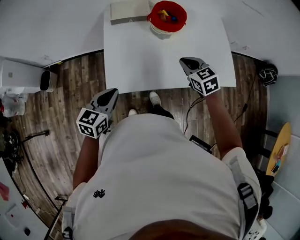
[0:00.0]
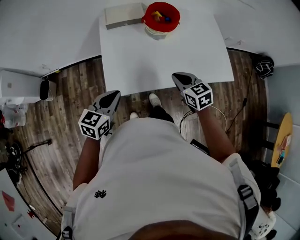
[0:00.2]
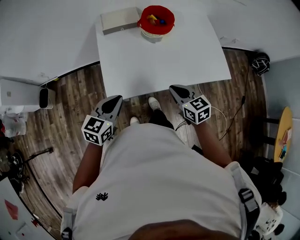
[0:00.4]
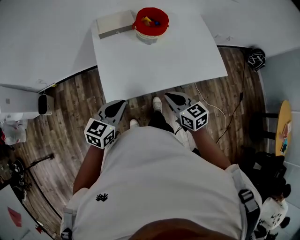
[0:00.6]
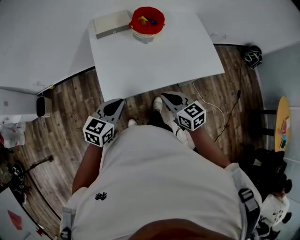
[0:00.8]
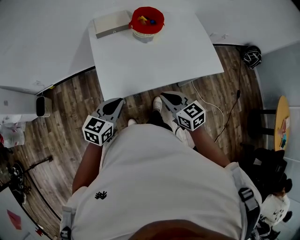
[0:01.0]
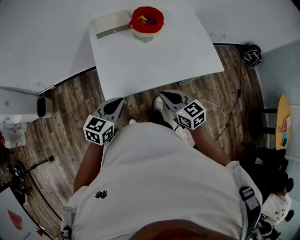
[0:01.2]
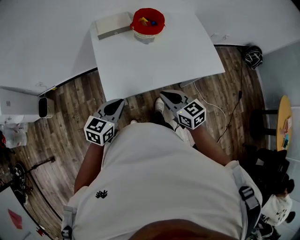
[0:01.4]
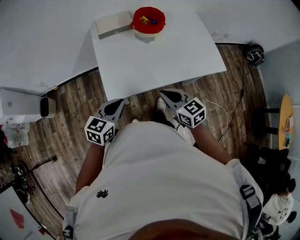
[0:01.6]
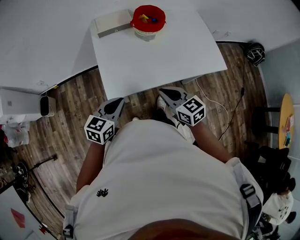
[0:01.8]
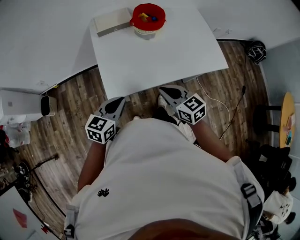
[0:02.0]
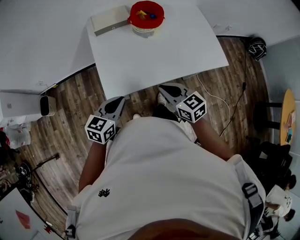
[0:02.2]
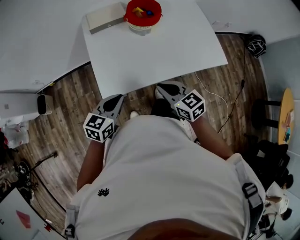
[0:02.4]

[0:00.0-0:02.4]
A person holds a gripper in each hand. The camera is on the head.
0:00.0 to 0:01.2: The right gripper travels backward by some 20 cm, and rotates some 20 degrees.
0:01.2 to 0:02.4: There are only small adjustments of the grippers.

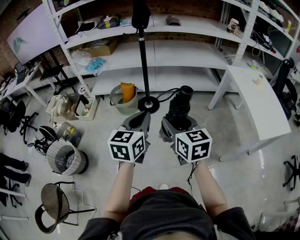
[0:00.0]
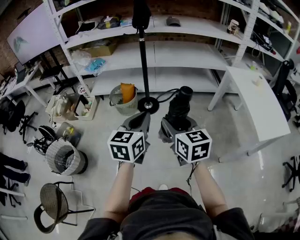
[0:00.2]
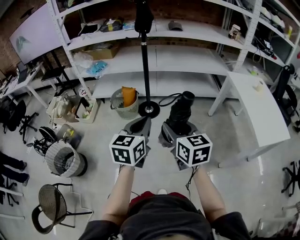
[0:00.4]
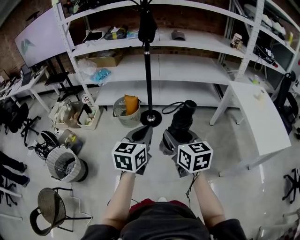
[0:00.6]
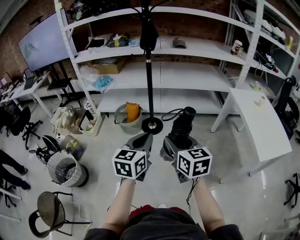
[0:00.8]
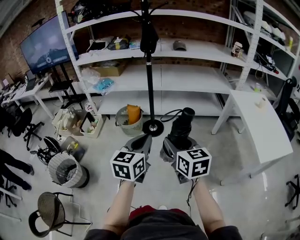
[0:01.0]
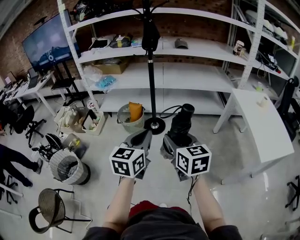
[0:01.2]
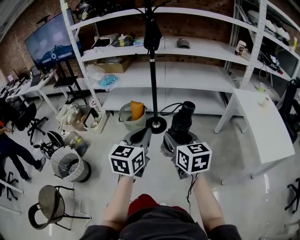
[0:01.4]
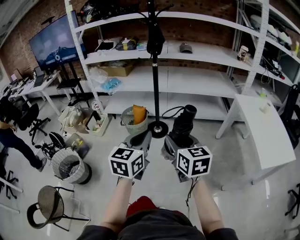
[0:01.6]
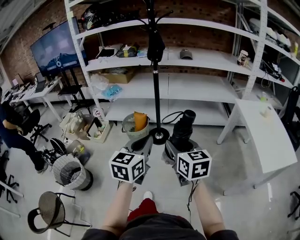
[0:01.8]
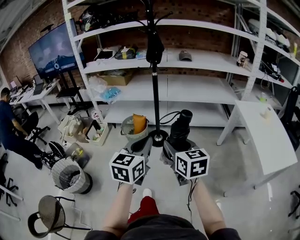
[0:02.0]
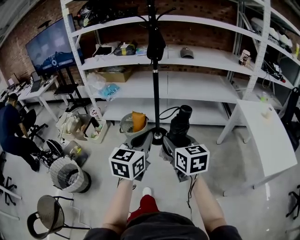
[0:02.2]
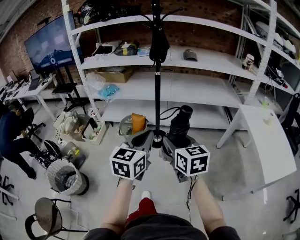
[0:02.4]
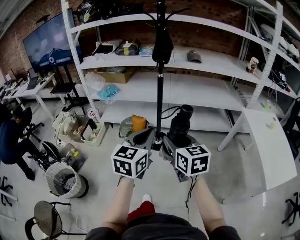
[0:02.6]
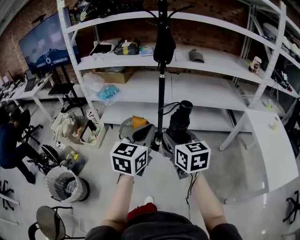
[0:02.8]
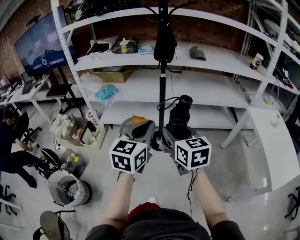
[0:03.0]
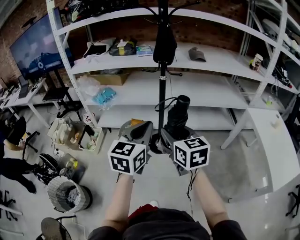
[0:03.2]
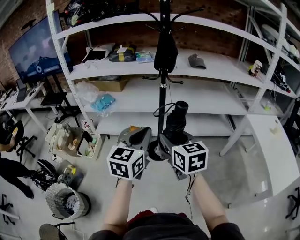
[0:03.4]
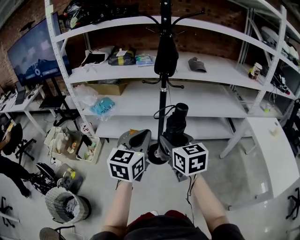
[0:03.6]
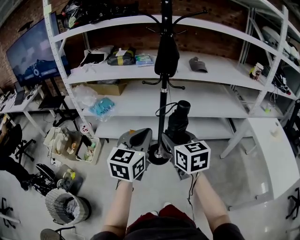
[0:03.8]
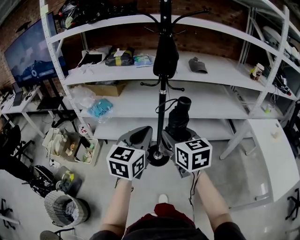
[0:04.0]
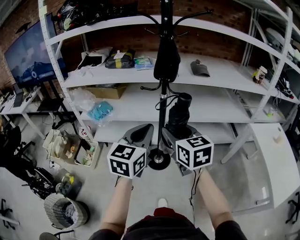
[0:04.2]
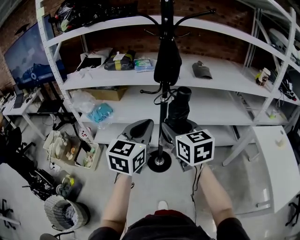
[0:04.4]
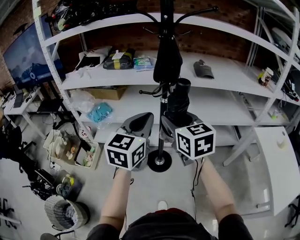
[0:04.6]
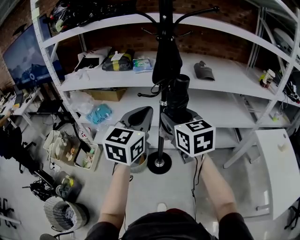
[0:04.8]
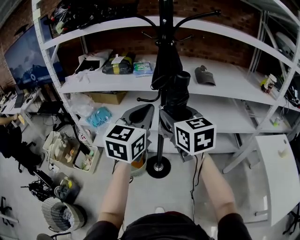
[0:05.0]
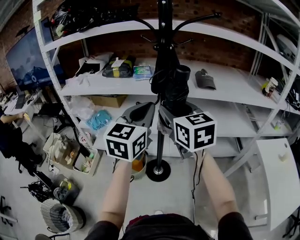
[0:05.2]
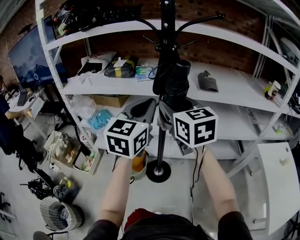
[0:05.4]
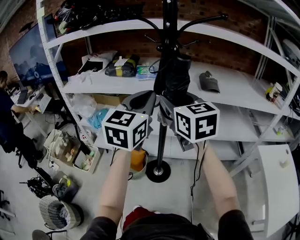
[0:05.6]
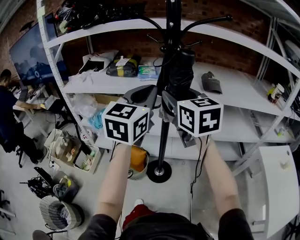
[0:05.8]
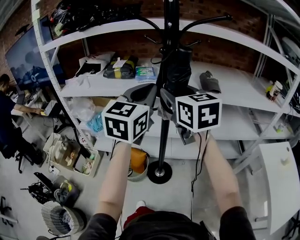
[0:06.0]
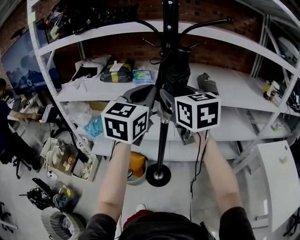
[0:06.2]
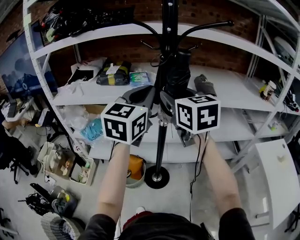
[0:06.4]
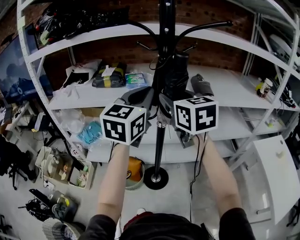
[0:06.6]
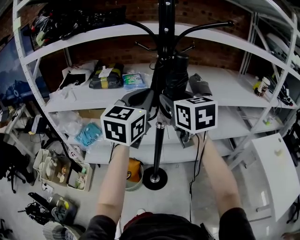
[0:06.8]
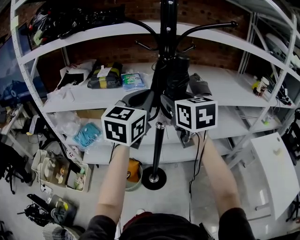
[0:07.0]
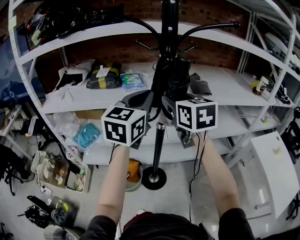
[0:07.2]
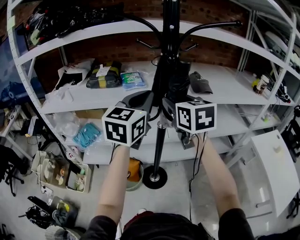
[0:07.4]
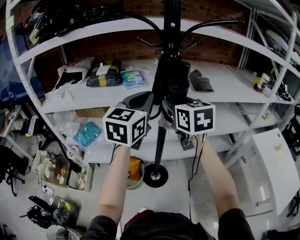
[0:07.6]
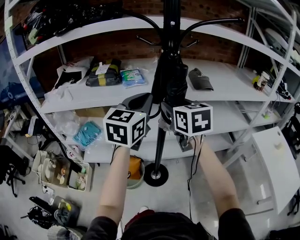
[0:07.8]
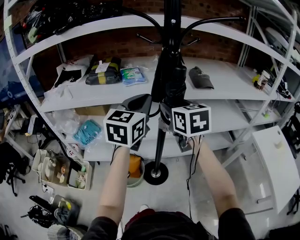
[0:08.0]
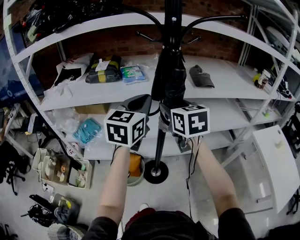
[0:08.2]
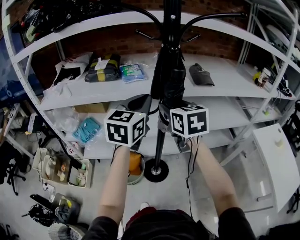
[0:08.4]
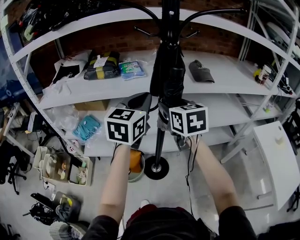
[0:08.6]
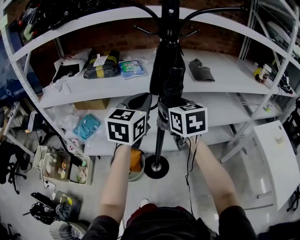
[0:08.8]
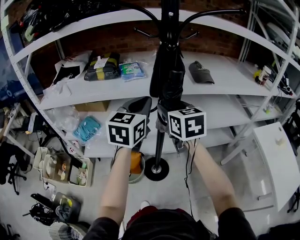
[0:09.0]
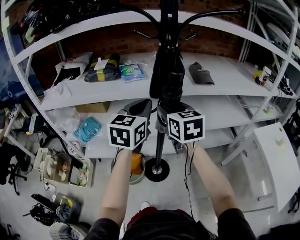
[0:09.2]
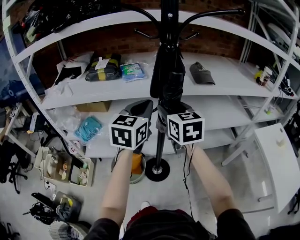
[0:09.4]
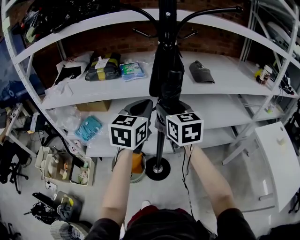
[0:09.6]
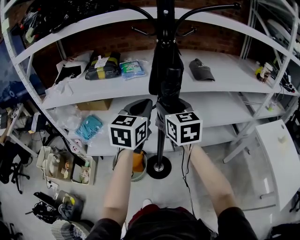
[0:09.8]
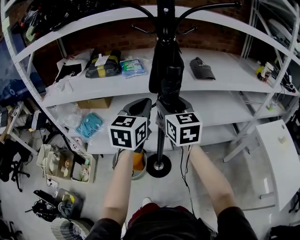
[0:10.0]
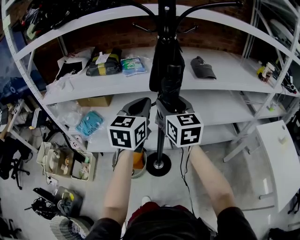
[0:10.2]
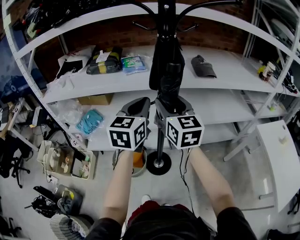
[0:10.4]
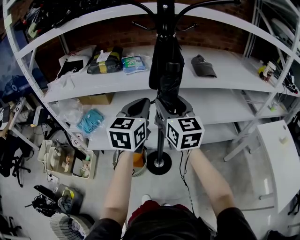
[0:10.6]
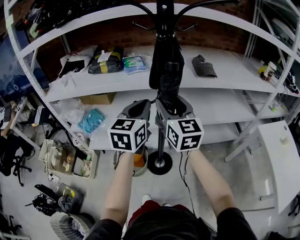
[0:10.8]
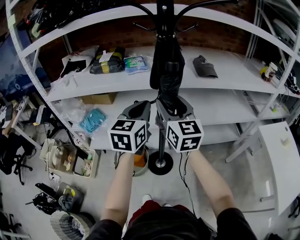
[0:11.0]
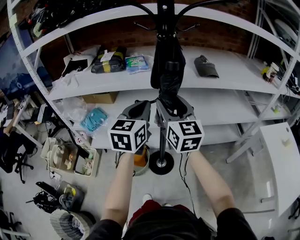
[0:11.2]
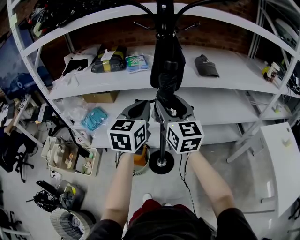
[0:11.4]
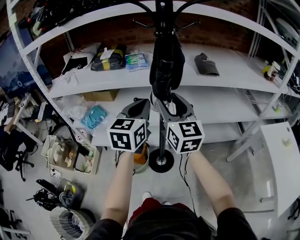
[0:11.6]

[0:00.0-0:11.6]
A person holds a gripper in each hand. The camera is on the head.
0:00.0 to 0:01.4: The grippers stay close to where they were, moving slightly.
0:01.4 to 0:02.8: The grippers both shift forward by about 25 cm.
0:02.8 to 0:04.4: Both grippers travel together forward, some 25 cm.
0:04.4 to 0:05.8: Both grippers travel together forward and upward, some 20 cm.
0:05.8 to 0:07.2: The two grippers go roughly 10 cm forward.
0:07.2 to 0:08.8: Both grippers move downward, roughly 10 cm.
0:08.8 to 0:10.2: There are only small adjustments of the grippers.
0:10.2 to 0:11.6: The grippers stay close to where they were, moving slightly.

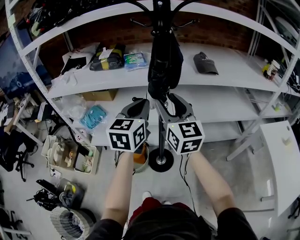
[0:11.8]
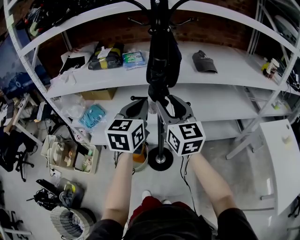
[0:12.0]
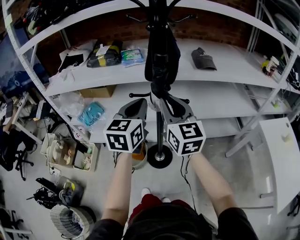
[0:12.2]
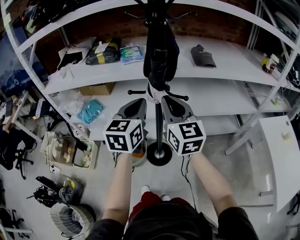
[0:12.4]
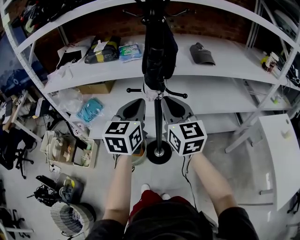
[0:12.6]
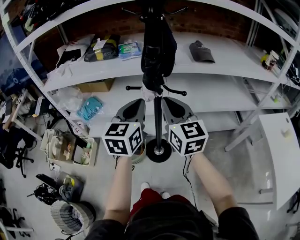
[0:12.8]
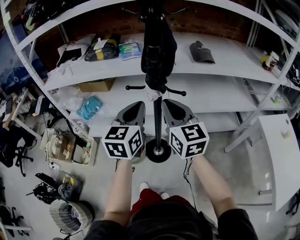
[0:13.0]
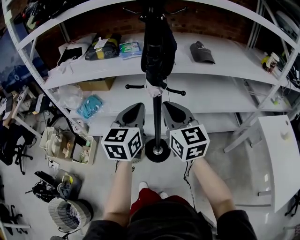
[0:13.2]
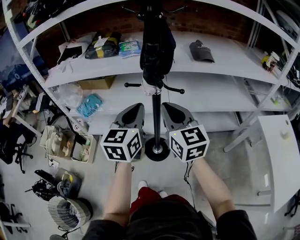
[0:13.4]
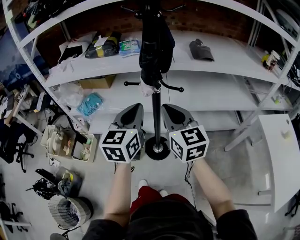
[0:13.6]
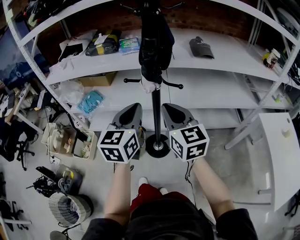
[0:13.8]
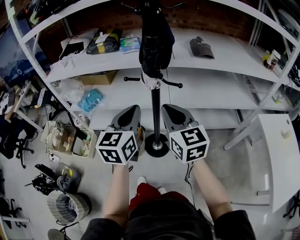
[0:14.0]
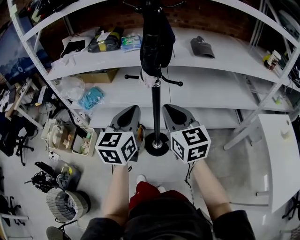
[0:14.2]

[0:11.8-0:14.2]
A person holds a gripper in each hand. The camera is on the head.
0:11.8 to 0:13.0: The right gripper moves roughly 5 cm, and closes. Meanwhile the left gripper moves about 5 cm.
0:13.0 to 0:14.2: Both grippers travel together backward, about 5 cm.

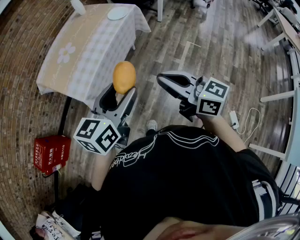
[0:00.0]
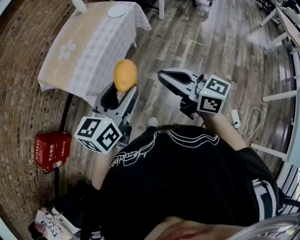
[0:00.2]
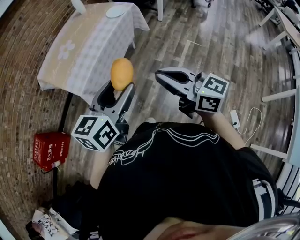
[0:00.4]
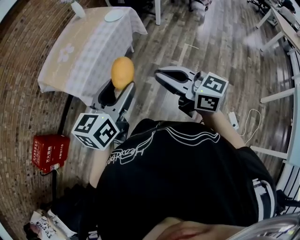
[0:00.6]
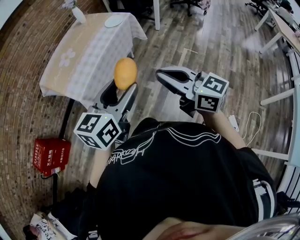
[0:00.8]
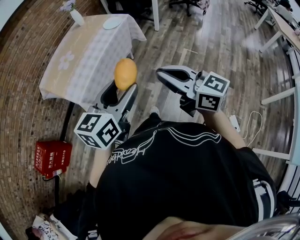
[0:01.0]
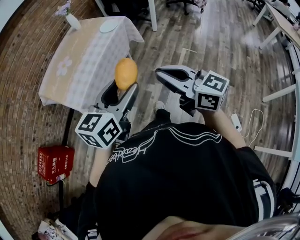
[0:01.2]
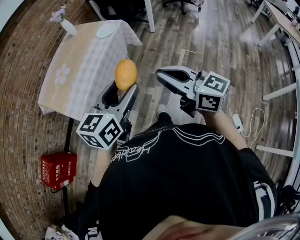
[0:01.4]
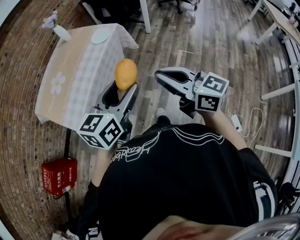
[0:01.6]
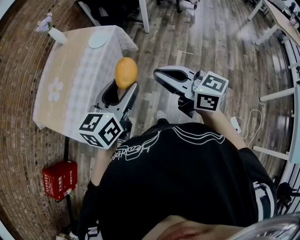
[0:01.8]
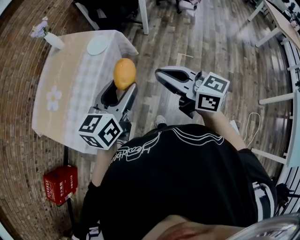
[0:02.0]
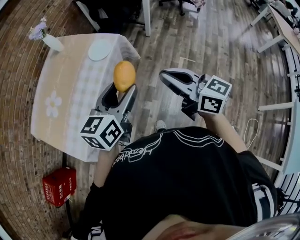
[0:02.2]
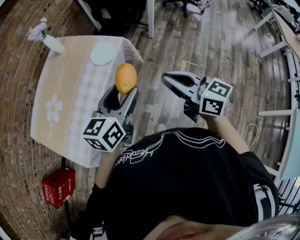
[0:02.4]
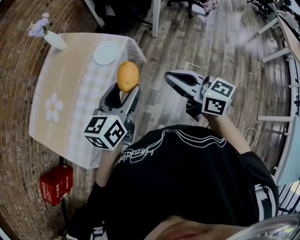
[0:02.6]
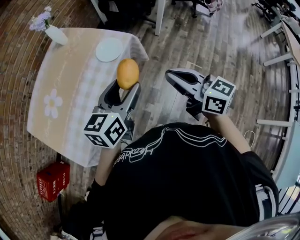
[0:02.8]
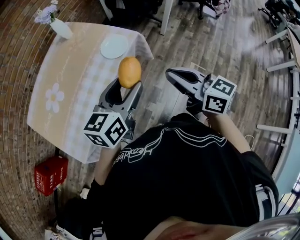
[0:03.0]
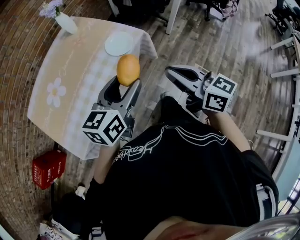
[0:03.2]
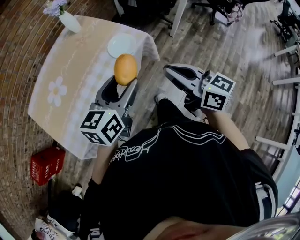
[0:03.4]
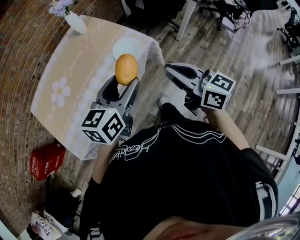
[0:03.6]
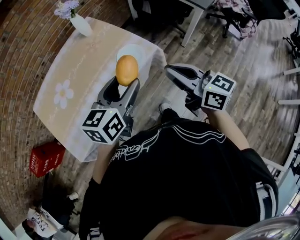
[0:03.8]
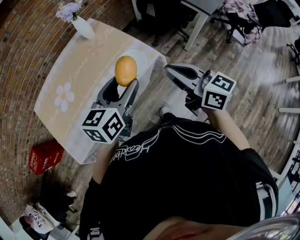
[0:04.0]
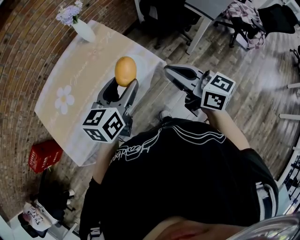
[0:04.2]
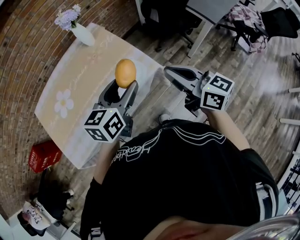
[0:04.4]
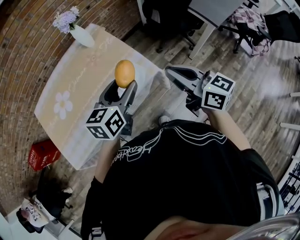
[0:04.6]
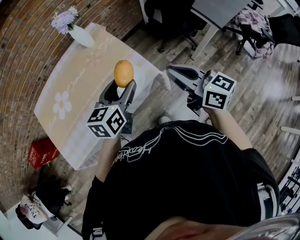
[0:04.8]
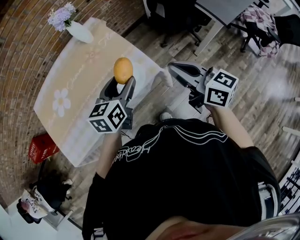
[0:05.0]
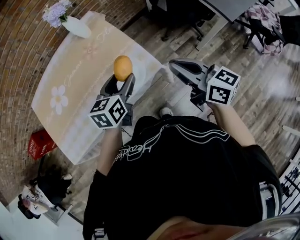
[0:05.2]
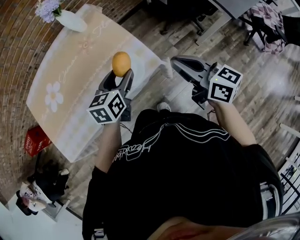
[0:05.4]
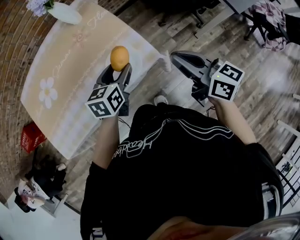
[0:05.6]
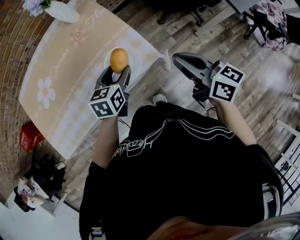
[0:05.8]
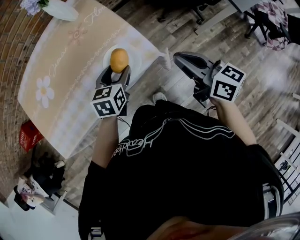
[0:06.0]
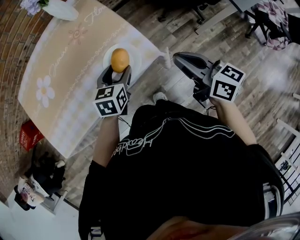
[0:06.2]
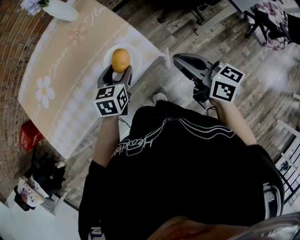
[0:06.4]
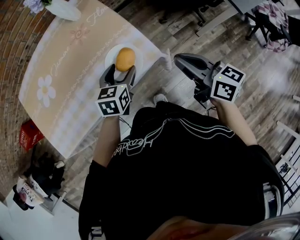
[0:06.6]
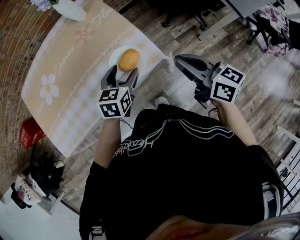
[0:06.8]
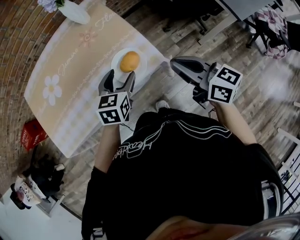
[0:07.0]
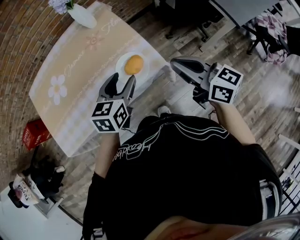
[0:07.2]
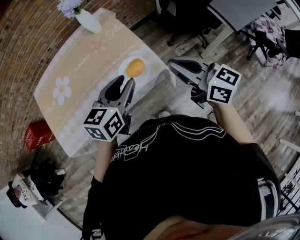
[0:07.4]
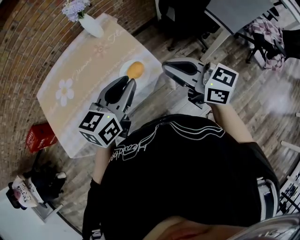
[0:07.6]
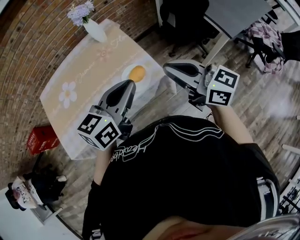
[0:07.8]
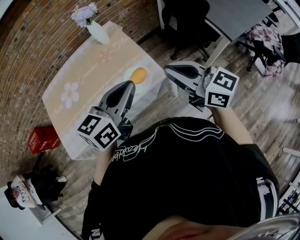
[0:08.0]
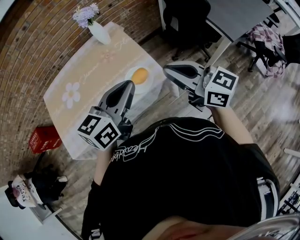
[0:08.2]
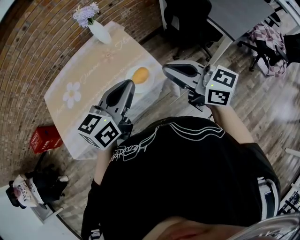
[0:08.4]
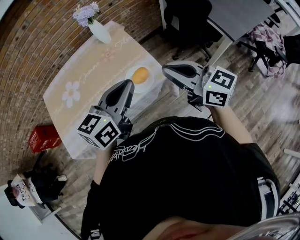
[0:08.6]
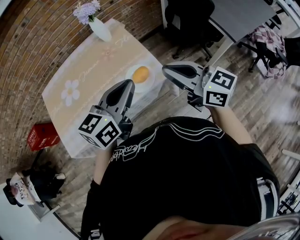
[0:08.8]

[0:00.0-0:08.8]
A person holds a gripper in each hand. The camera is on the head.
0:00.0 to 0:01.4: Both grippers travel together to the right, some 10 cm.
0:01.4 to 0:03.0: Both grippers move forward, roughly 40 cm.
0:03.0 to 0:04.4: Both grippers travel together forward, approximately 20 cm. The left gripper changes its angle by about 20 degrees.
0:04.4 to 0:05.8: The left gripper is displaced downward and forward by about 25 cm, and swivels roughly 20 degrees, while the right gripper is displaced downward, forward and to the right by some 15 cm.
0:05.8 to 0:07.4: The left gripper moves upward, some 15 cm, and closes; the right gripper goes roughly 10 cm upward.
0:07.4 to 0:08.8: The left gripper shifts approximately 10 cm upward, and closes, while the right gripper travels upward by some 5 cm.
